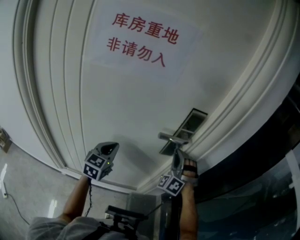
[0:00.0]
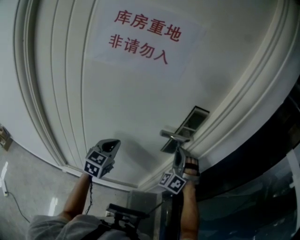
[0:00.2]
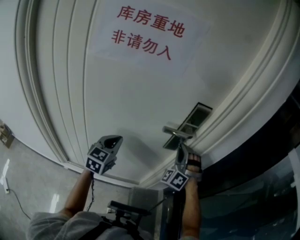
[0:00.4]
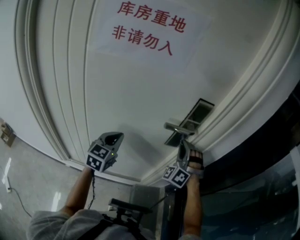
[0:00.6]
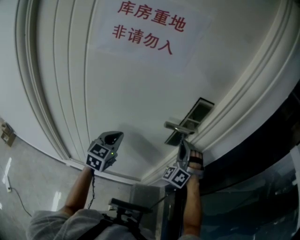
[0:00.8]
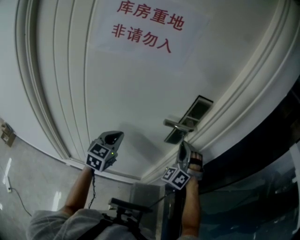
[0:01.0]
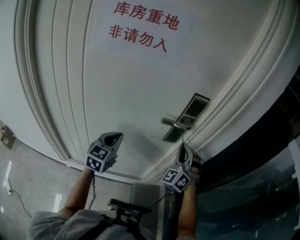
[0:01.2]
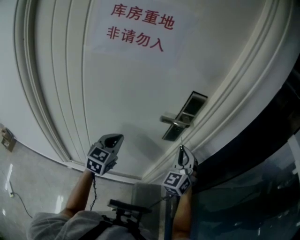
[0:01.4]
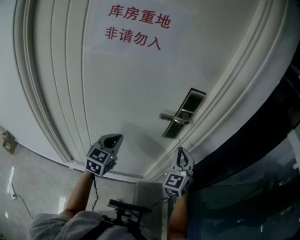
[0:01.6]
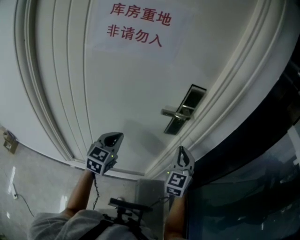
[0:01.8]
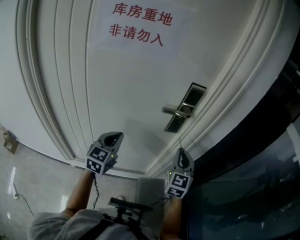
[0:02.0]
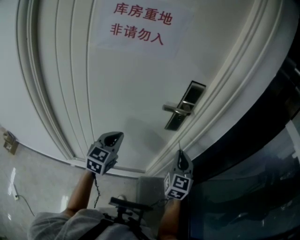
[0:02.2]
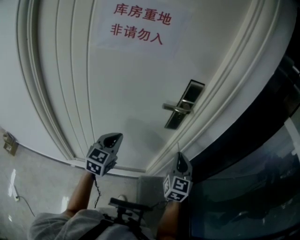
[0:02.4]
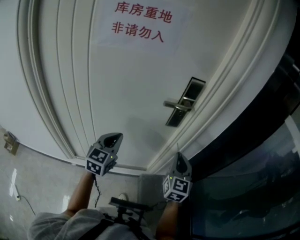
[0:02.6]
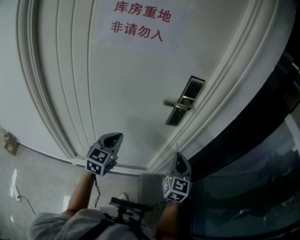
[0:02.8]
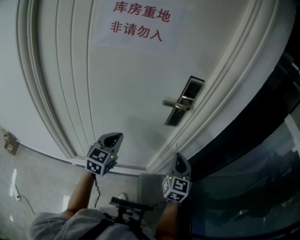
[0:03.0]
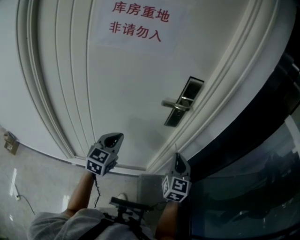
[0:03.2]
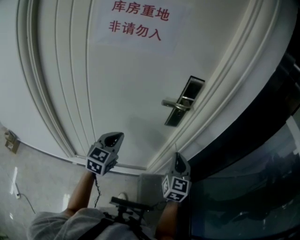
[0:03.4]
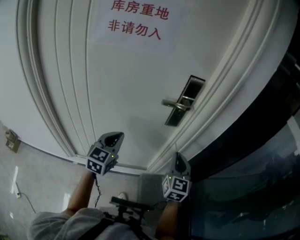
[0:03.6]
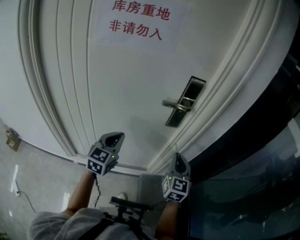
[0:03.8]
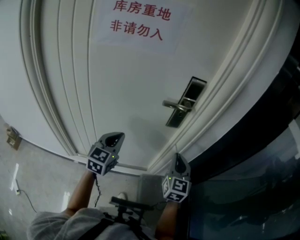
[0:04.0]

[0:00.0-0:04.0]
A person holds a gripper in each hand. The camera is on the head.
0:00.0 to 0:01.4: The right gripper goes roughly 5 cm backward, and turns by approximately 40 degrees.
0:01.4 to 0:02.6: Both grippers move backward, about 10 cm. The right gripper rotates around the line of its fingers by approximately 40 degrees, clockwise from behind.
0:02.6 to 0:04.0: The grippers stay close to where they were, moving slightly.

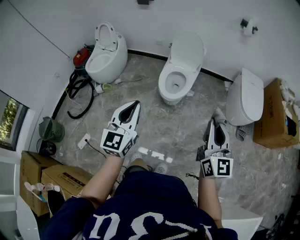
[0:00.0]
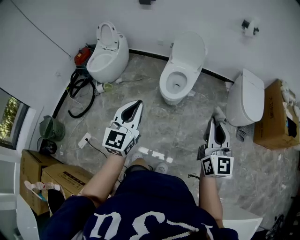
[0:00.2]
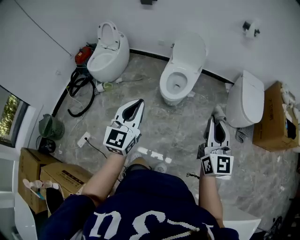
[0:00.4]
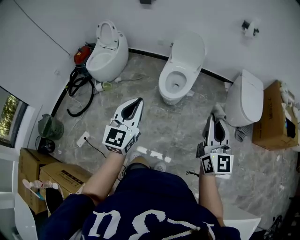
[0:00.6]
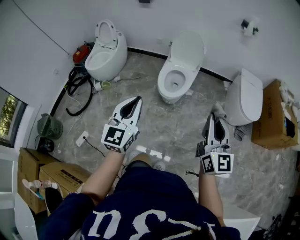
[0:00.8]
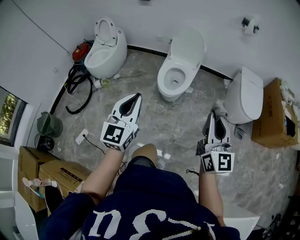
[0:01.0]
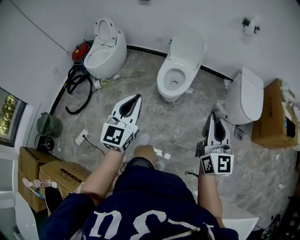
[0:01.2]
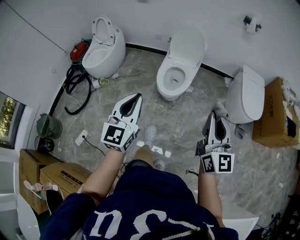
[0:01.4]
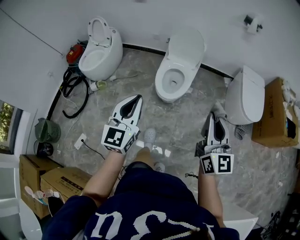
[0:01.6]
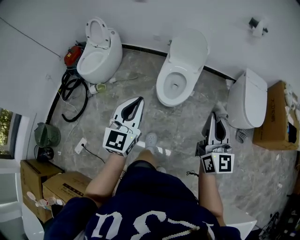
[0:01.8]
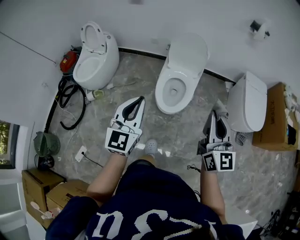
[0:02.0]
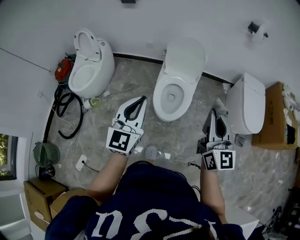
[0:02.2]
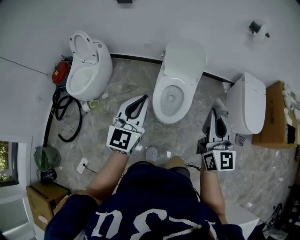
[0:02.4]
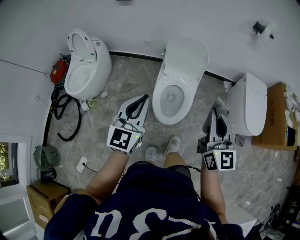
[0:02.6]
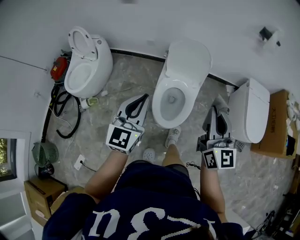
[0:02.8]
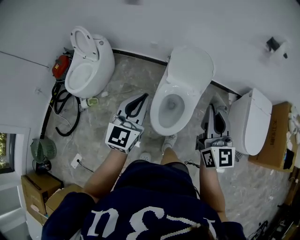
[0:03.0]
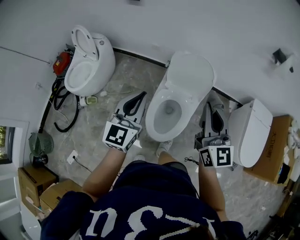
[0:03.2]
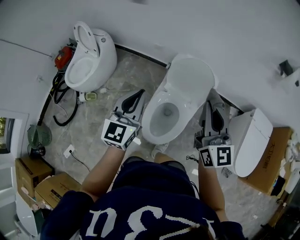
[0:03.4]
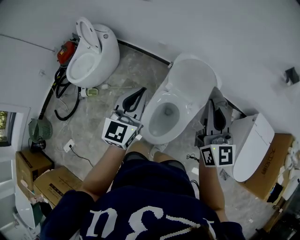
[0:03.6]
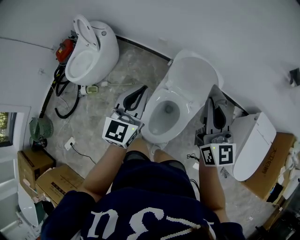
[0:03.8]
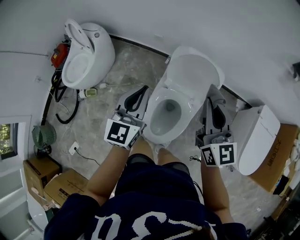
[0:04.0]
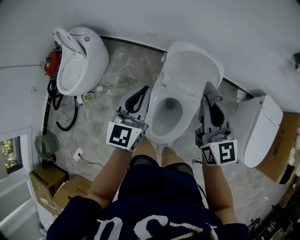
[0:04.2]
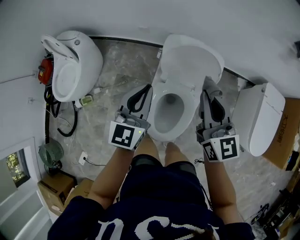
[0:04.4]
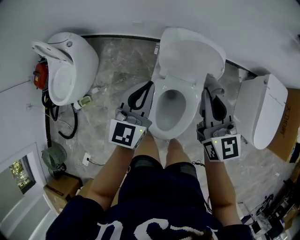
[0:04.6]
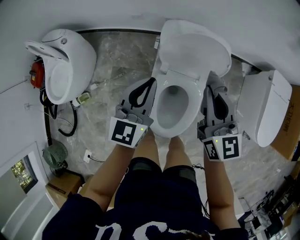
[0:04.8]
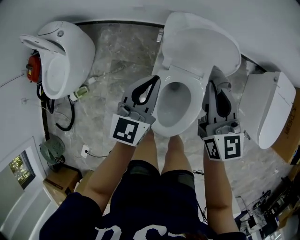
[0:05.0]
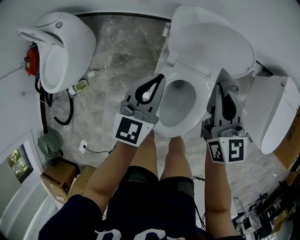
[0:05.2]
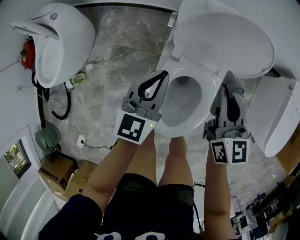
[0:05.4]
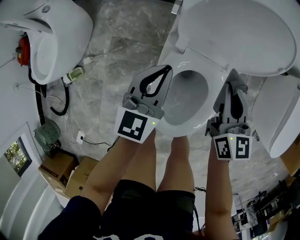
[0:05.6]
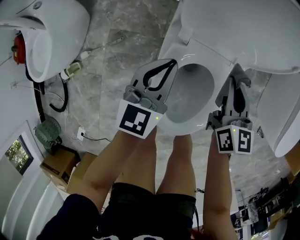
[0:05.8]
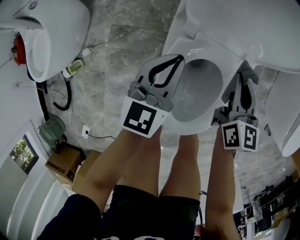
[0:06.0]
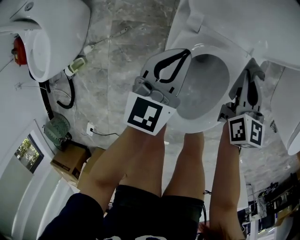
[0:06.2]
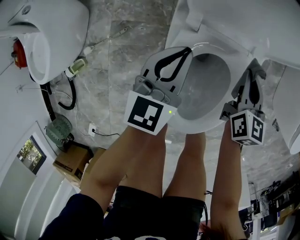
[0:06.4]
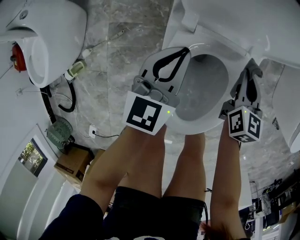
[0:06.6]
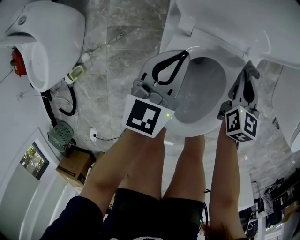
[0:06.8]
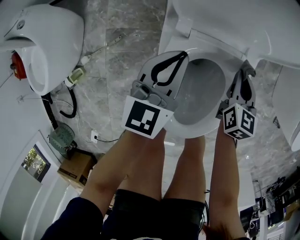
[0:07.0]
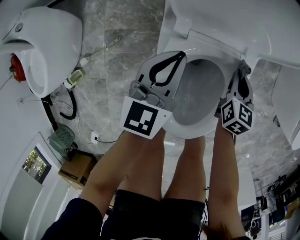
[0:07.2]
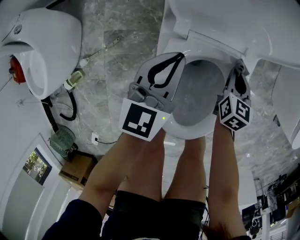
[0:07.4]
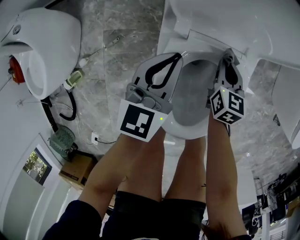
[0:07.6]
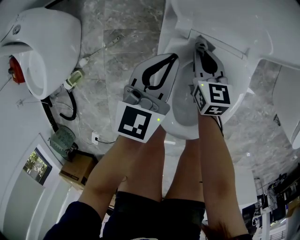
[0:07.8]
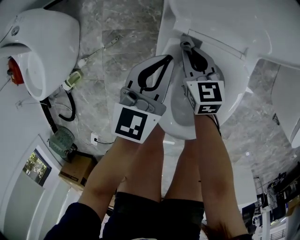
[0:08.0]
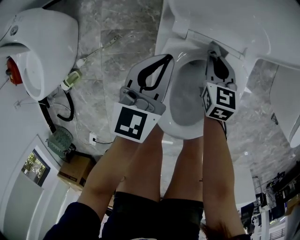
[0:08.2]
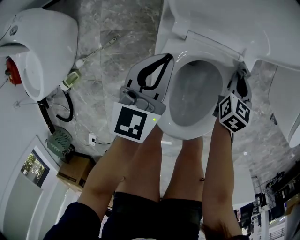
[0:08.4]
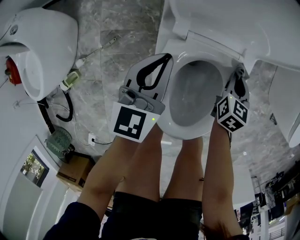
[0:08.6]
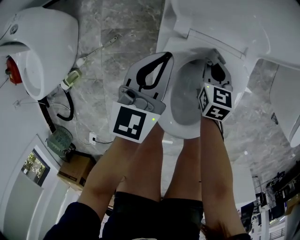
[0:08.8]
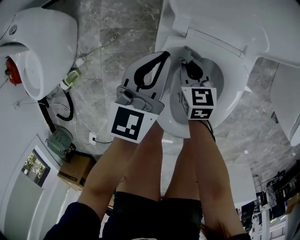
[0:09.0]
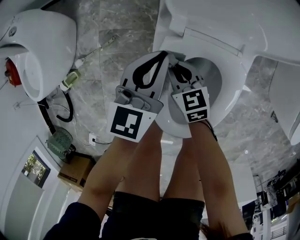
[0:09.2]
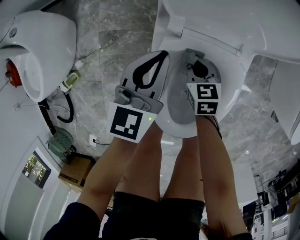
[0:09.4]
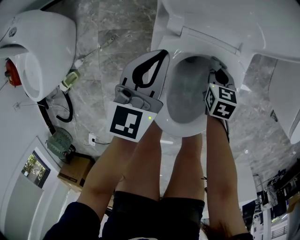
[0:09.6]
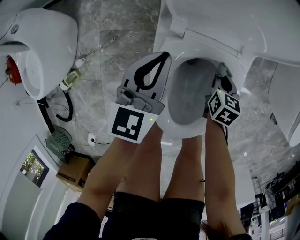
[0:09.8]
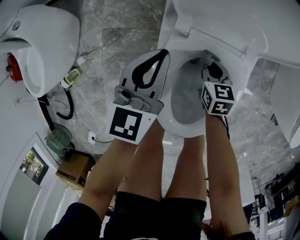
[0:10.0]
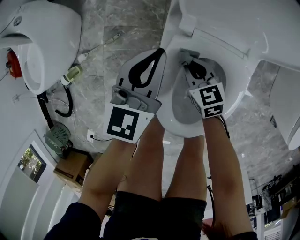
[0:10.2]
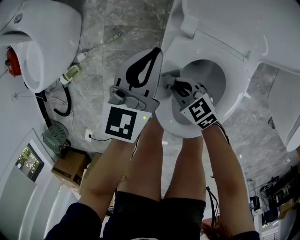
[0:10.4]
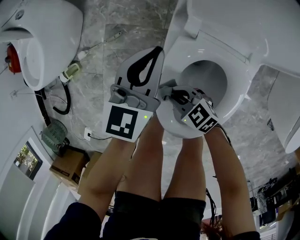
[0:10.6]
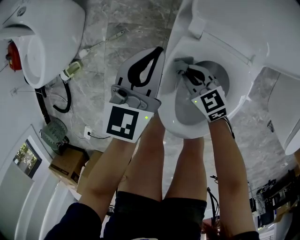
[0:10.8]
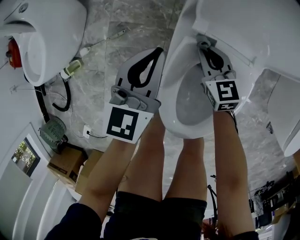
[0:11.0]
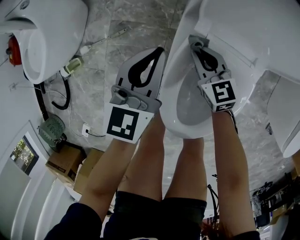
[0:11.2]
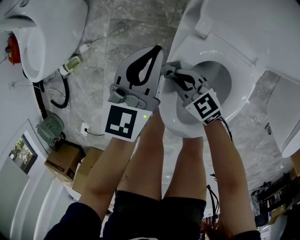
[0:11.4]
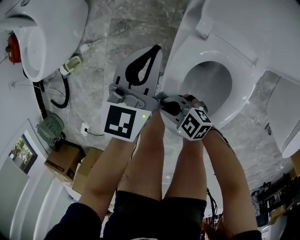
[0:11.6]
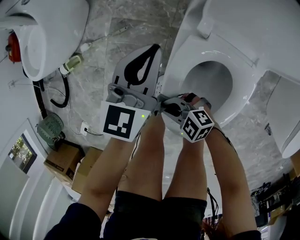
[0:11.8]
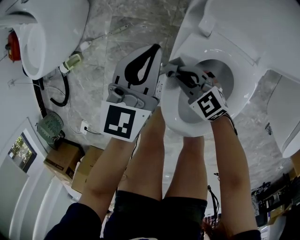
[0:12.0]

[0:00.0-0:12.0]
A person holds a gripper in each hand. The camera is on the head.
0:00.0 to 0:01.6: The grippers both shift forward by roughly 10 cm.
0:01.6 to 0:03.0: The two grippers travel together, forward, about 50 cm.
0:03.0 to 0:04.4: The two grippers go some 30 cm forward.
0:04.4 to 0:06.0: The grippers both shift downward by about 40 cm. The right gripper changes its angle by roughly 30 degrees.
0:06.0 to 0:07.6: The right gripper moves downward, approximately 15 cm. Meanwhile the left gripper moves approximately 5 cm.
0:07.6 to 0:09.0: The right gripper swings left and right, roughly 20 cm each way, with 2 reversals, and swivels roughly 20 degrees.
0:09.0 to 0:10.4: The right gripper shifts by roughly 10 cm, and rotates approximately 40 degrees.
0:10.4 to 0:12.0: The left gripper changes place by approximately 5 cm.

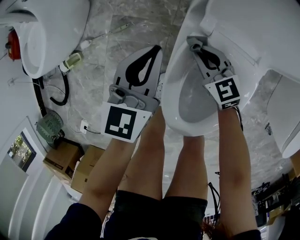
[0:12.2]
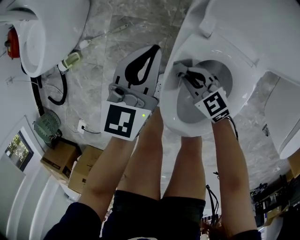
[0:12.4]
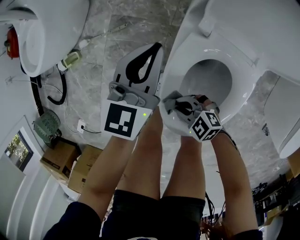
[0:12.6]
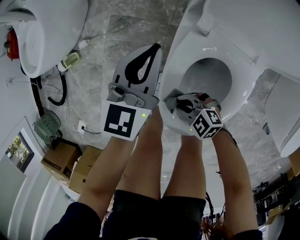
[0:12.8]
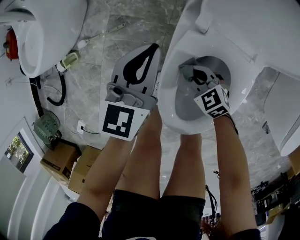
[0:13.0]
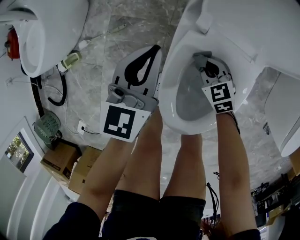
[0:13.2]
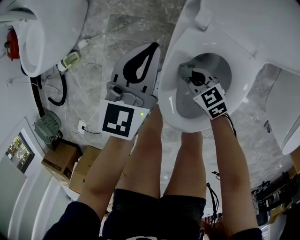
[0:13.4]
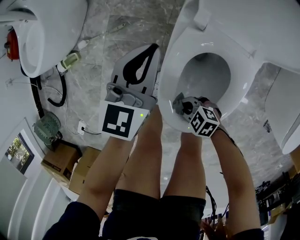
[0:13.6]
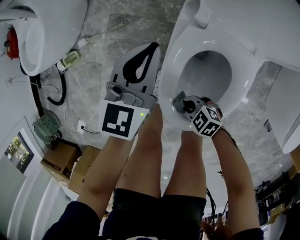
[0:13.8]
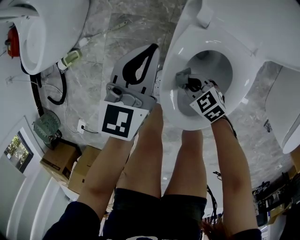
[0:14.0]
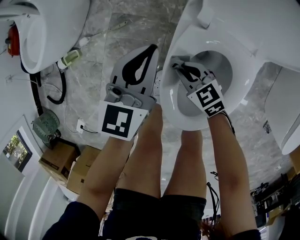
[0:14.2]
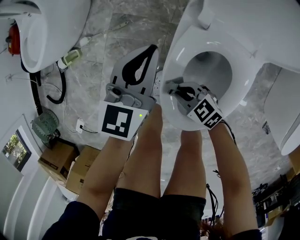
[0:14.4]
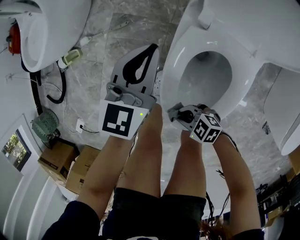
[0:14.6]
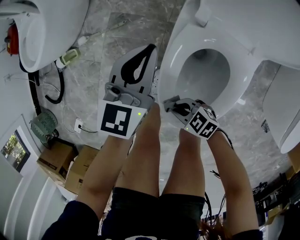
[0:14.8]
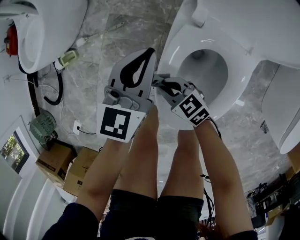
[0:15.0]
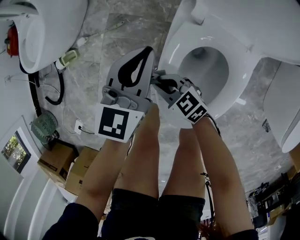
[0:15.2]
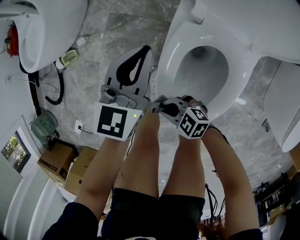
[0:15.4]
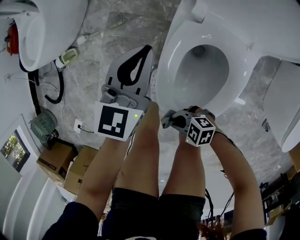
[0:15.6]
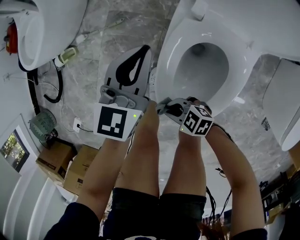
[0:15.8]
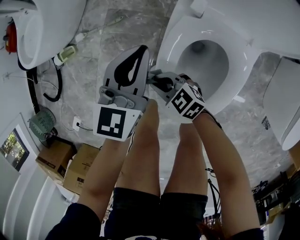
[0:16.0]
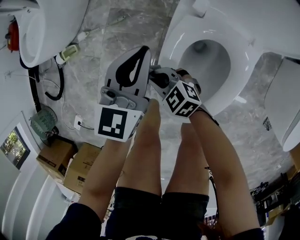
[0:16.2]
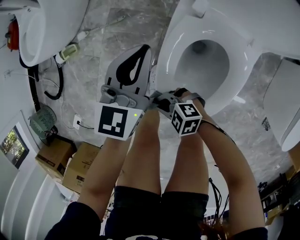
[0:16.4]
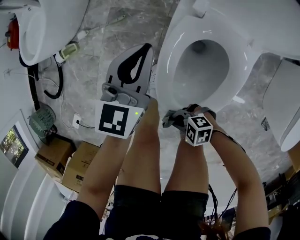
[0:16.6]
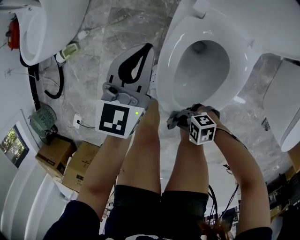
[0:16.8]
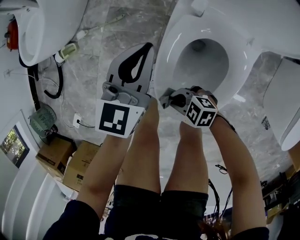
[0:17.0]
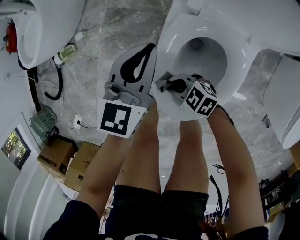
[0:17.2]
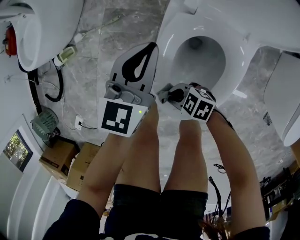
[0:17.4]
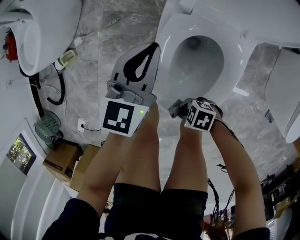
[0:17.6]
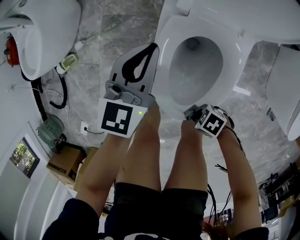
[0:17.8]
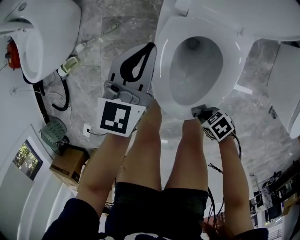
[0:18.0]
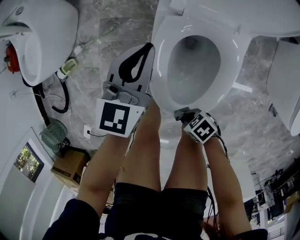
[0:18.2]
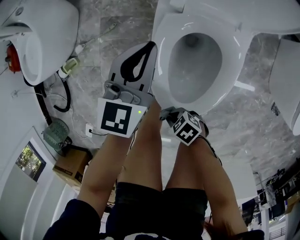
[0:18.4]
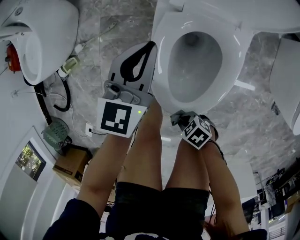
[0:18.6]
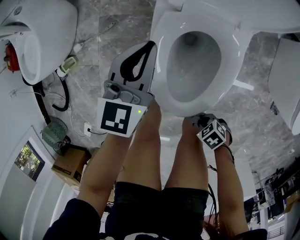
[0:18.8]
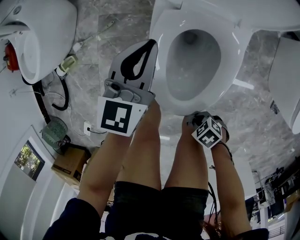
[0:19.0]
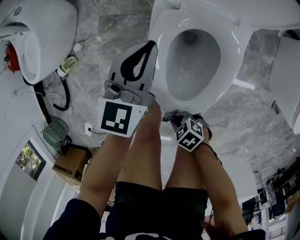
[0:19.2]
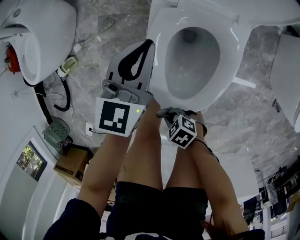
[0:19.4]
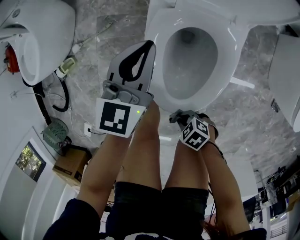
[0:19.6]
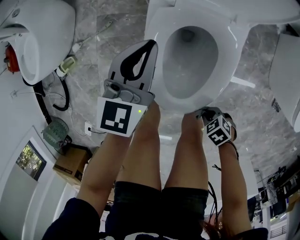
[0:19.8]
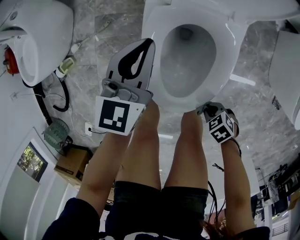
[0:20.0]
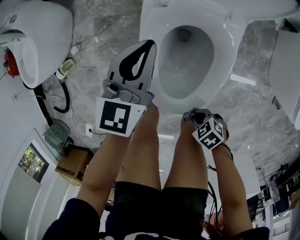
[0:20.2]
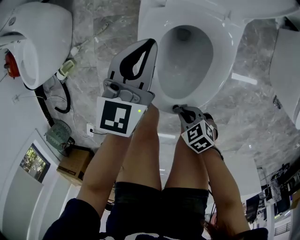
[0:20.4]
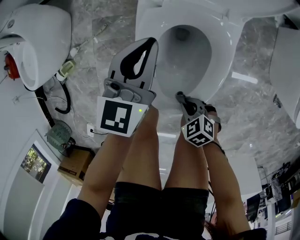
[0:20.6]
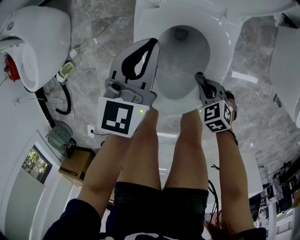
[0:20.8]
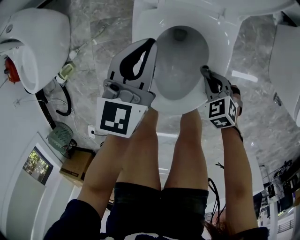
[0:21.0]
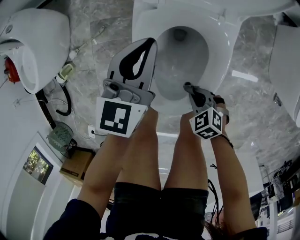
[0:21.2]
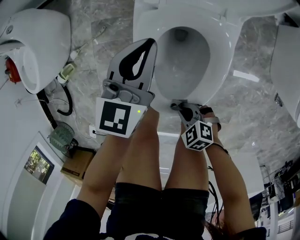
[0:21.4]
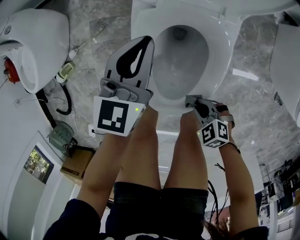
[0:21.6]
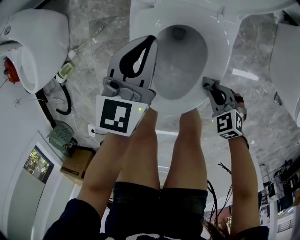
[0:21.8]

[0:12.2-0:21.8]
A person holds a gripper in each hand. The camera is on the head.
0:12.2 to 0:13.8: The right gripper moves roughly 30 cm, and turns by about 40 degrees.
0:17.0 to 0:18.6: The left gripper shifts by some 5 cm; the right gripper ends up approximately 10 cm from where it was, and turns by approximately 40 degrees.
0:20.2 to 0:21.8: The right gripper shifts by roughly 15 cm, and turns by about 30 degrees. Meanwhile the left gripper shifts by some 5 cm.
